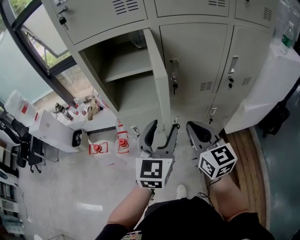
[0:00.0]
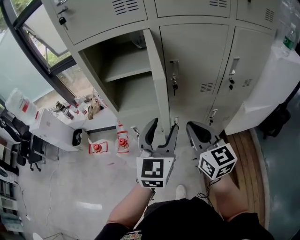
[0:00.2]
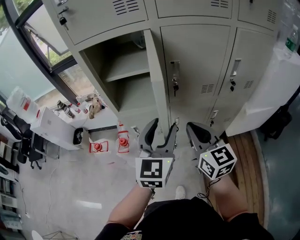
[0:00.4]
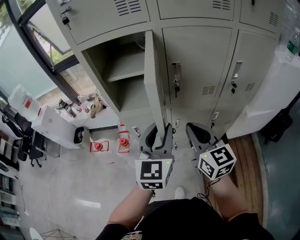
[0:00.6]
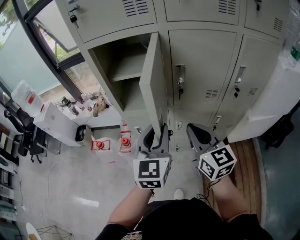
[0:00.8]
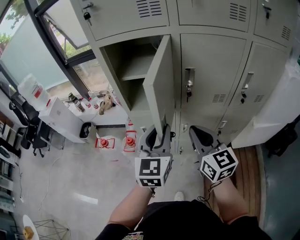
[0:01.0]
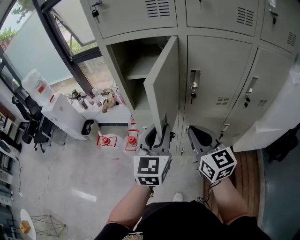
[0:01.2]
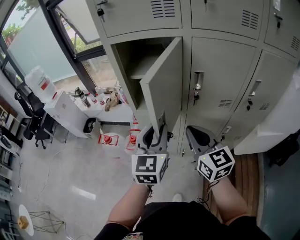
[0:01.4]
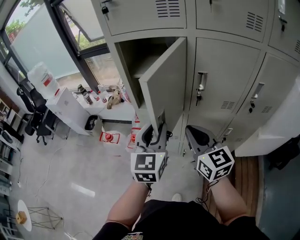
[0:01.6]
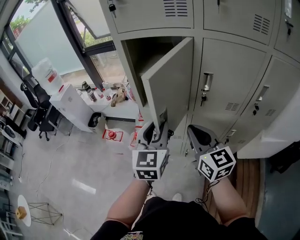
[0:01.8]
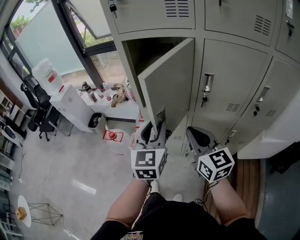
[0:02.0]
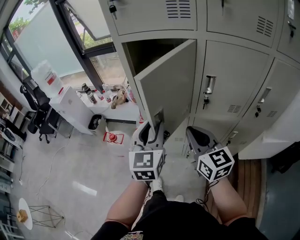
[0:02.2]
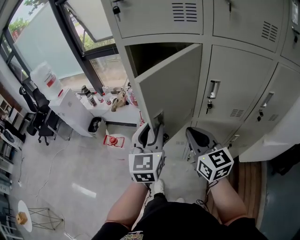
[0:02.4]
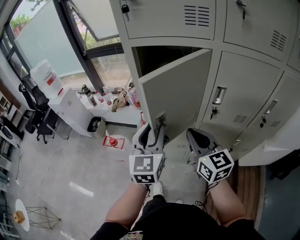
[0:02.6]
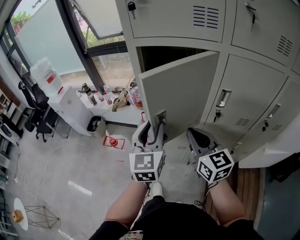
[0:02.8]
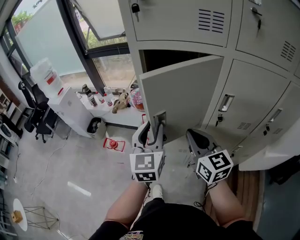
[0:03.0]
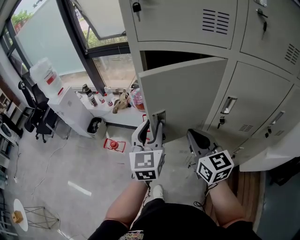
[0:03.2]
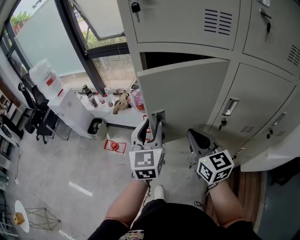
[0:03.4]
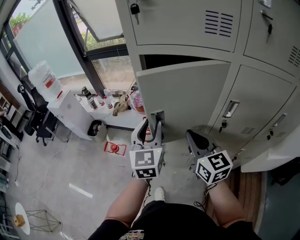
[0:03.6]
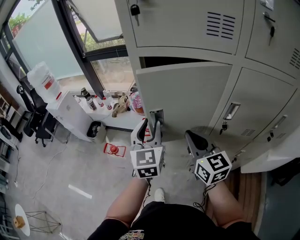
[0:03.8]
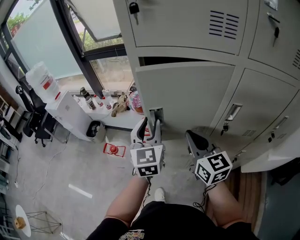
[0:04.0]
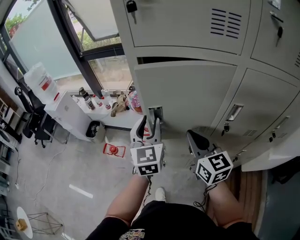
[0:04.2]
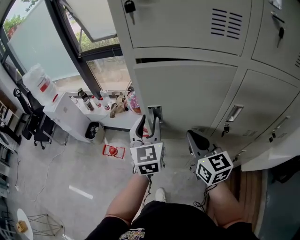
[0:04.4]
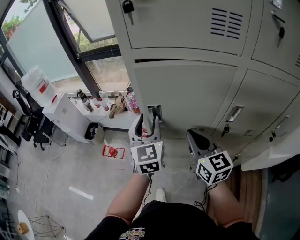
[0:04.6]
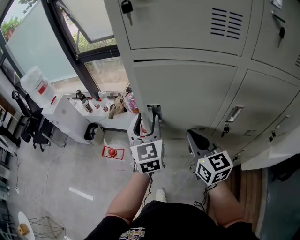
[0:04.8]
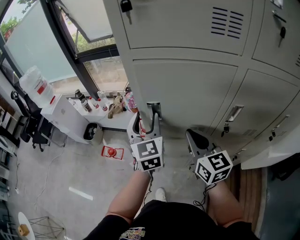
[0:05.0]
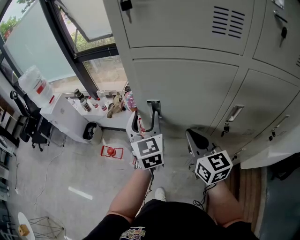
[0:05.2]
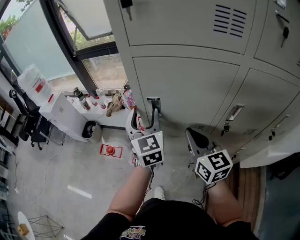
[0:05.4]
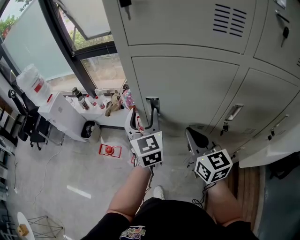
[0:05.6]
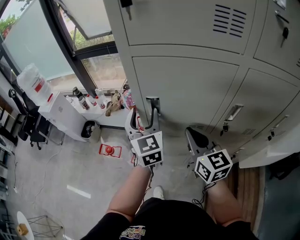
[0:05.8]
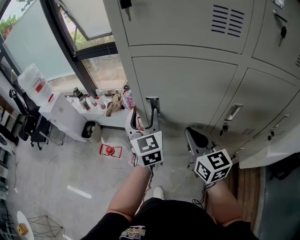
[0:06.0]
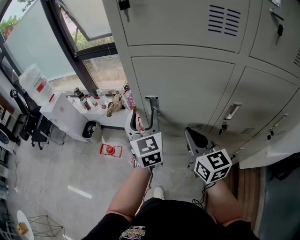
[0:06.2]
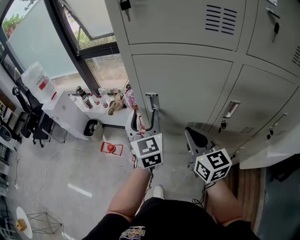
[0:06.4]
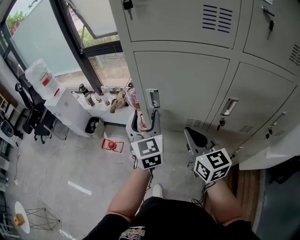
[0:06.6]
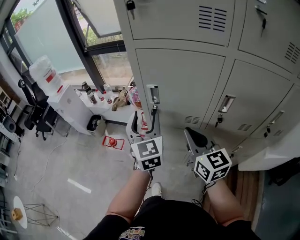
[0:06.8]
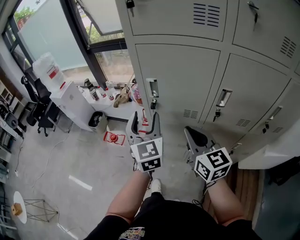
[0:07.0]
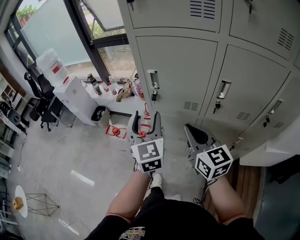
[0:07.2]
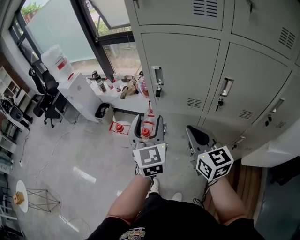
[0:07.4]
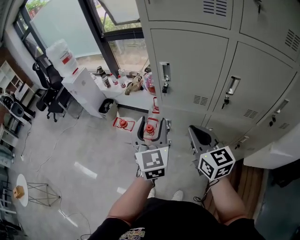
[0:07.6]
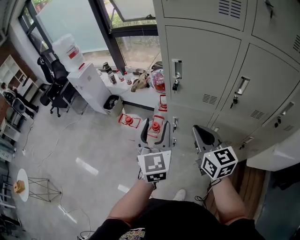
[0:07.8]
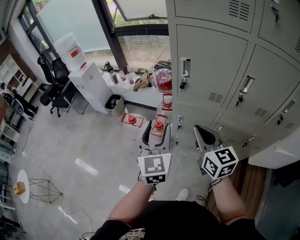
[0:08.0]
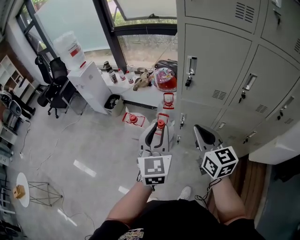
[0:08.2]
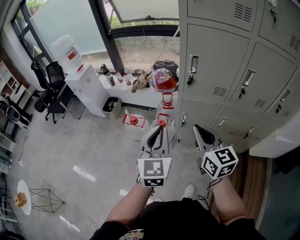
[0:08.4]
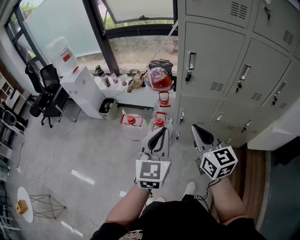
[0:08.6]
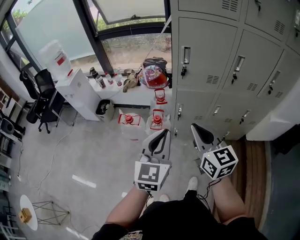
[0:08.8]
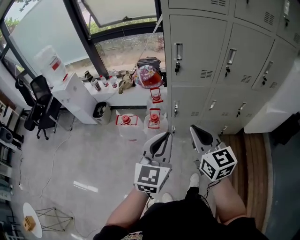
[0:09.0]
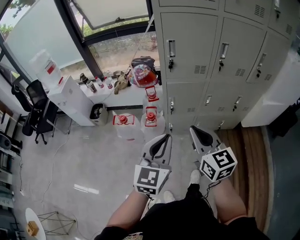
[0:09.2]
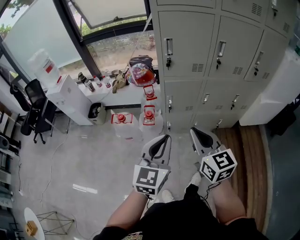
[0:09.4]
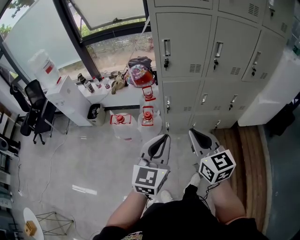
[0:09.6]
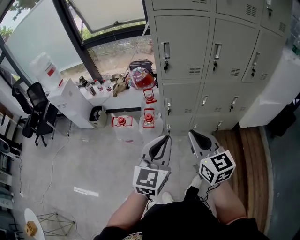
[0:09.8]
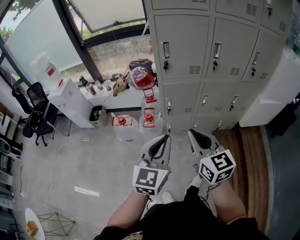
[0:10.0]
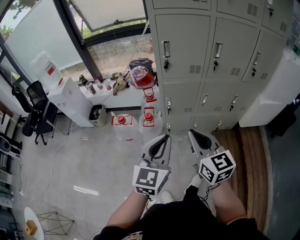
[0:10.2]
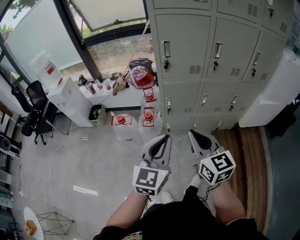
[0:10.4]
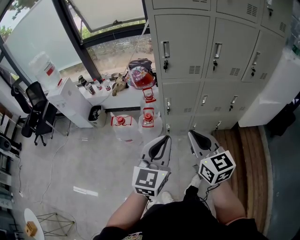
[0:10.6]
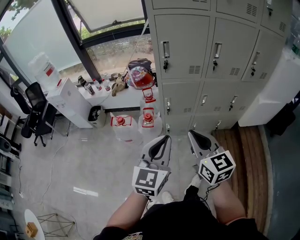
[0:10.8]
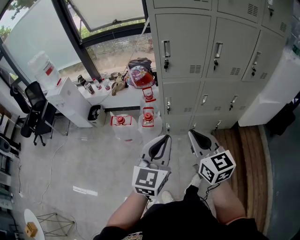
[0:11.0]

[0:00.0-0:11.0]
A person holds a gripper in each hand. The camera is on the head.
0:00.0 to 0:01.6: Both grippers travel together to the left, approximately 5 cm. The left gripper closes.
0:01.6 to 0:03.2: The grippers both shift forward and to the left by about 15 cm.
0:03.2 to 0:04.8: The left gripper heads forward, covering approximately 10 cm. The right gripper goes approximately 5 cm forward.
0:04.8 to 0:06.2: The grippers move only a little.
0:06.2 to 0:07.8: The right gripper travels backward and to the left by about 15 cm. The left gripper goes approximately 20 cm backward.
0:07.8 to 0:09.4: The left gripper moves roughly 20 cm, rotates some 40 degrees, and closes. The right gripper shifts by about 20 cm.
0:09.4 to 0:11.0: The grippers stay close to where they were, moving slightly.

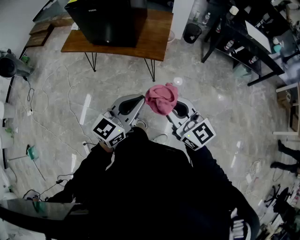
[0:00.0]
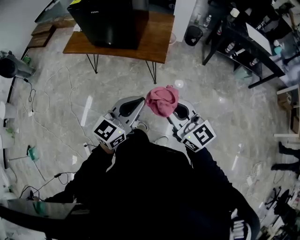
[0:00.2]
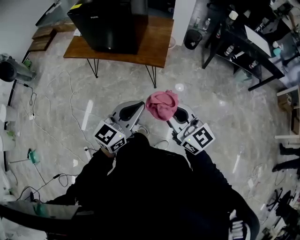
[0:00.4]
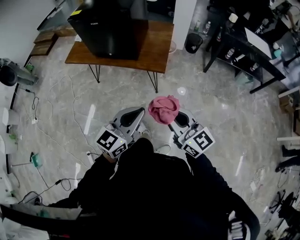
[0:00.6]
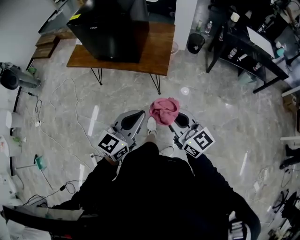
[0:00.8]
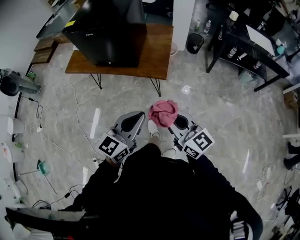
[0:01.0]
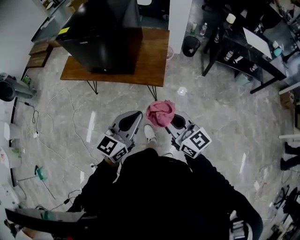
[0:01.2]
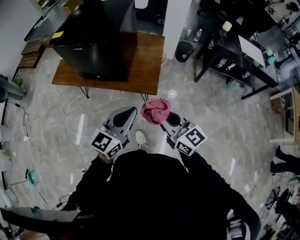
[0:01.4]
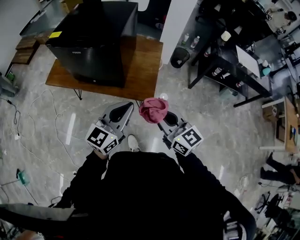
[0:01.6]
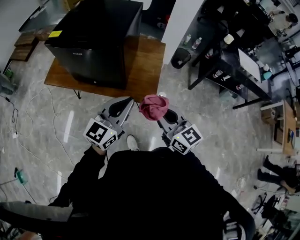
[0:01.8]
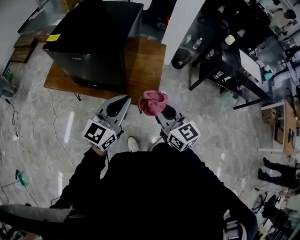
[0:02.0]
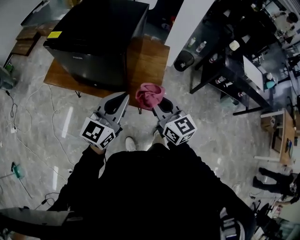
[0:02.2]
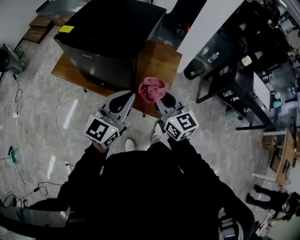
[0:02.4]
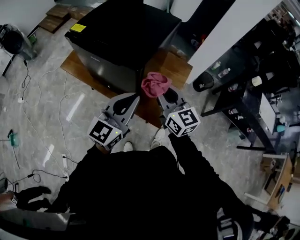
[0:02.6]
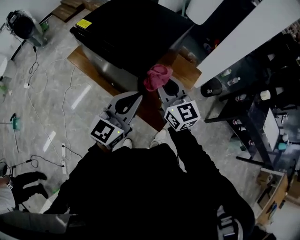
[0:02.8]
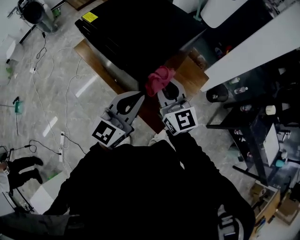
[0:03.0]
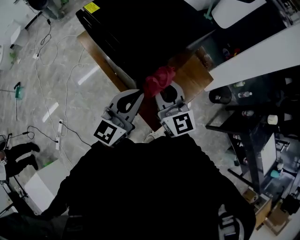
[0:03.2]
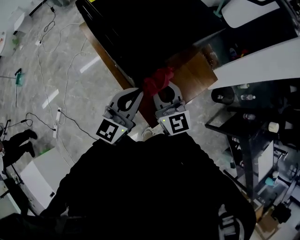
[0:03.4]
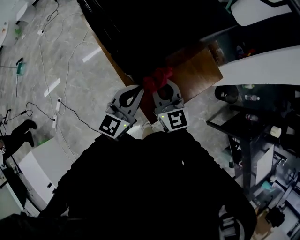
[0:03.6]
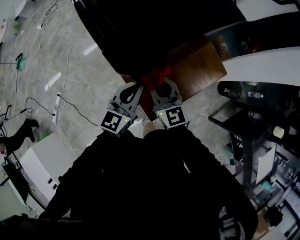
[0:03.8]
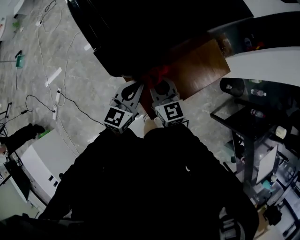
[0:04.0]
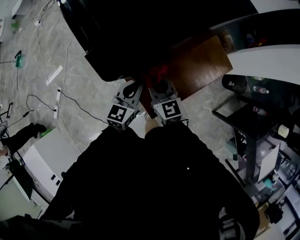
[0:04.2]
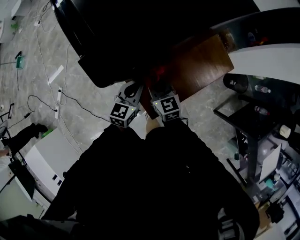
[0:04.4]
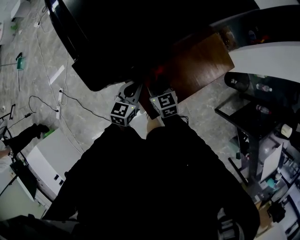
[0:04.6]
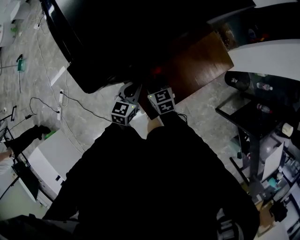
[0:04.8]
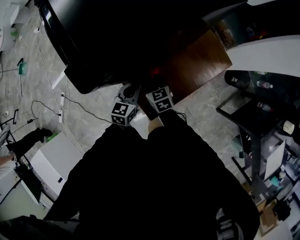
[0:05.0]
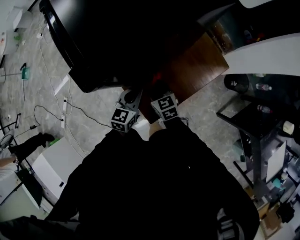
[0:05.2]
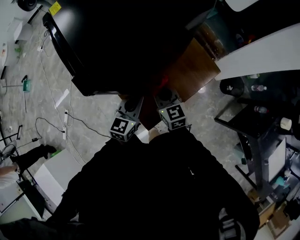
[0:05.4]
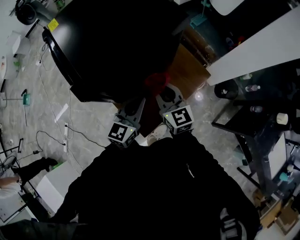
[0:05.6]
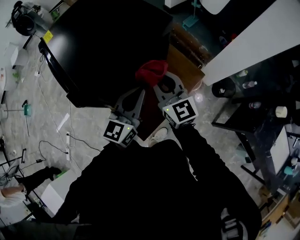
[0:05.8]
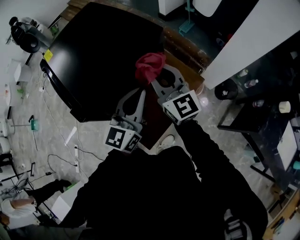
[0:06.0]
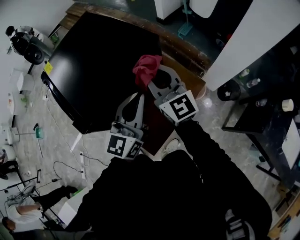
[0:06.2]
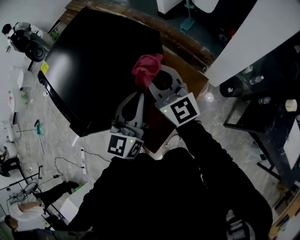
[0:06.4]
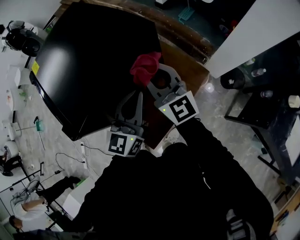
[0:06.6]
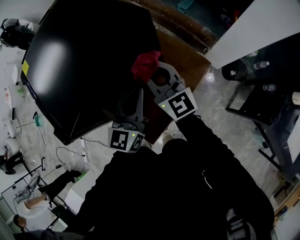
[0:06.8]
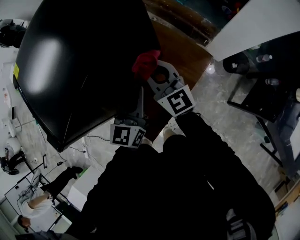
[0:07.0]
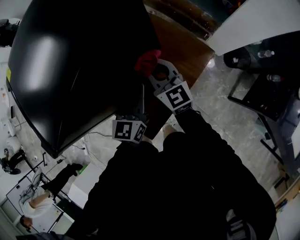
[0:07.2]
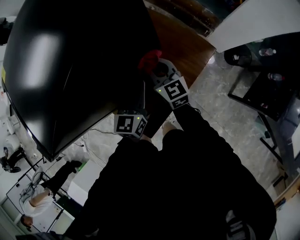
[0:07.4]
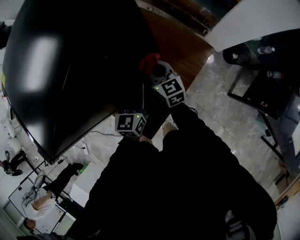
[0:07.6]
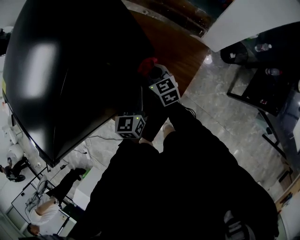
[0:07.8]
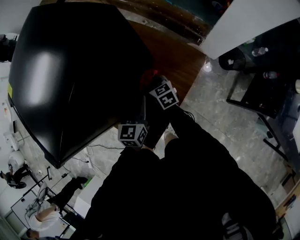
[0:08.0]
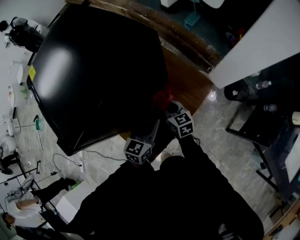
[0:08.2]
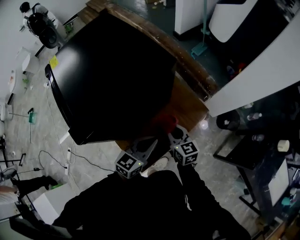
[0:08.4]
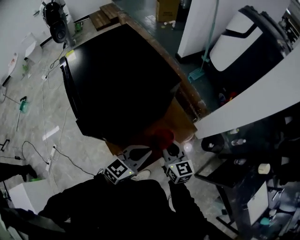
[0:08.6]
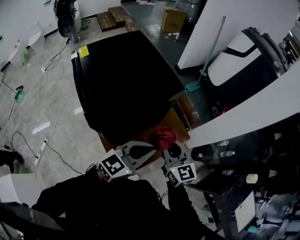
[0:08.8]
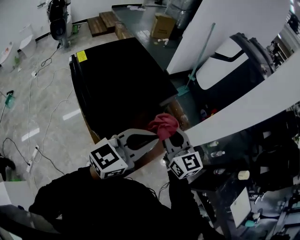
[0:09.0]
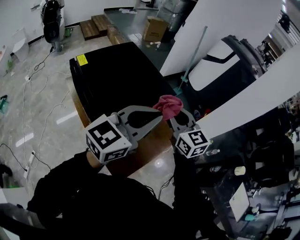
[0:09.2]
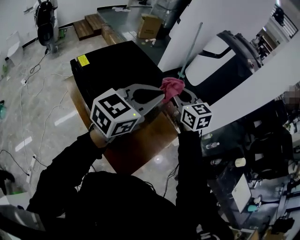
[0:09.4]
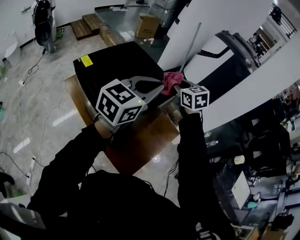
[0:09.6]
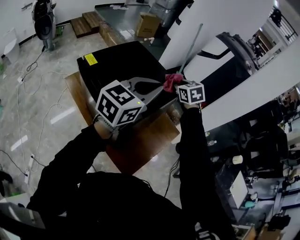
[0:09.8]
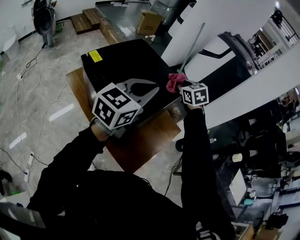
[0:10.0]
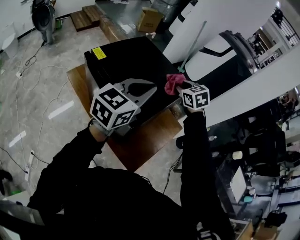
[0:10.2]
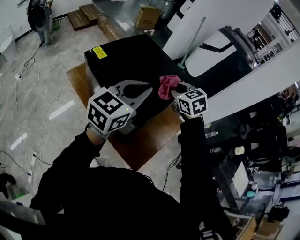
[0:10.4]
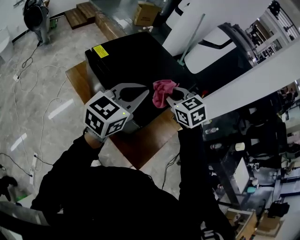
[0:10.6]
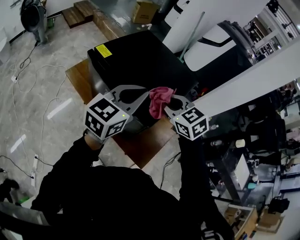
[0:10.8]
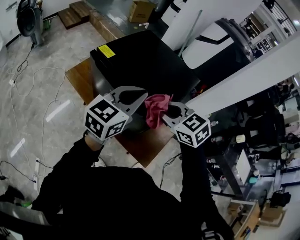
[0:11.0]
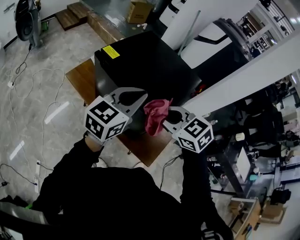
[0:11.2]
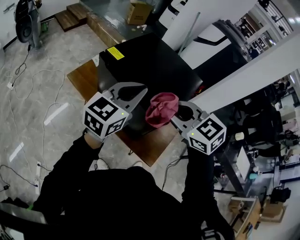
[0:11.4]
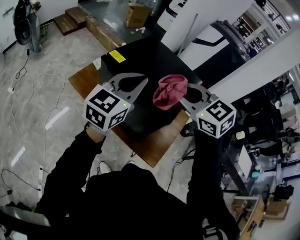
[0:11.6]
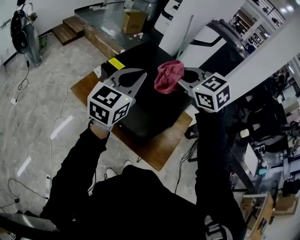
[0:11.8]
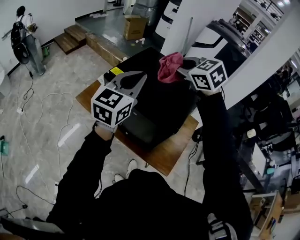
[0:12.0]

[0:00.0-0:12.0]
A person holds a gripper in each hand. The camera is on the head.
0:00.0 to 0:01.6: Both grippers move forward, some 25 cm.
0:01.6 to 0:03.0: The right gripper ends up approximately 35 cm from where it was, and swivels about 20 degrees; the left gripper moves about 25 cm, and rotates roughly 30 degrees.
0:03.0 to 0:04.4: Both grippers travel together downward, approximately 35 cm. The right gripper swivels about 30 degrees. Meanwhile the left gripper turns by approximately 30 degrees.
0:04.4 to 0:06.0: Both grippers travel together upward and to the right, roughly 35 cm. The left gripper changes its angle by some 30 degrees, while the right gripper swivels some 30 degrees.
0:06.0 to 0:07.6: Both grippers move downward, roughly 30 cm. The right gripper turns by about 30 degrees; the left gripper changes its angle by some 30 degrees.
0:07.6 to 0:09.0: Both grippers move upward, approximately 40 cm. The right gripper changes its angle by roughly 20 degrees; the left gripper turns by about 40 degrees.
0:09.0 to 0:10.4: The right gripper heads to the left and forward, covering approximately 20 cm, and points its fingers roughly 30 degrees further downward. Meanwhile the left gripper heads to the left, covering some 20 cm.
0:10.4 to 0:12.0: The right gripper goes approximately 20 cm to the left and upward, and travels backward and back again, approximately 20 cm each way; the left gripper is displaced to the left by about 15 cm.
